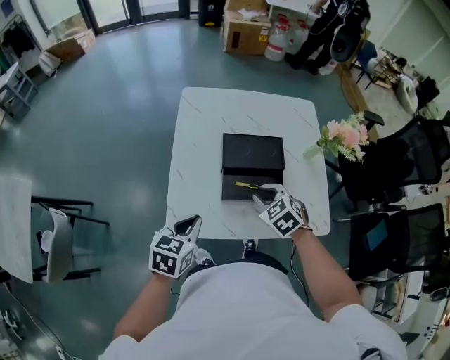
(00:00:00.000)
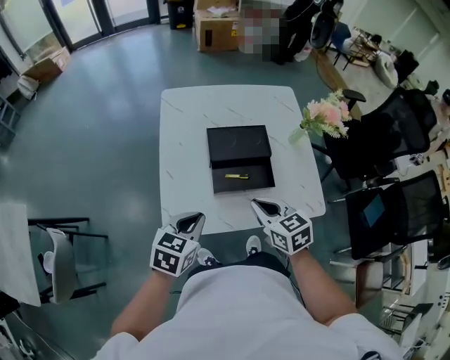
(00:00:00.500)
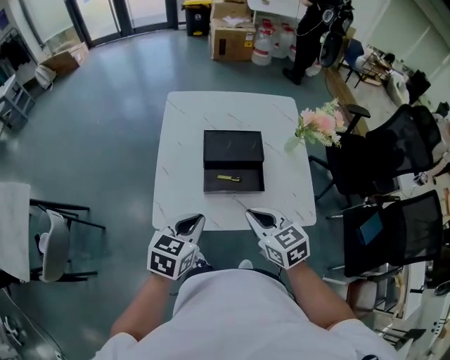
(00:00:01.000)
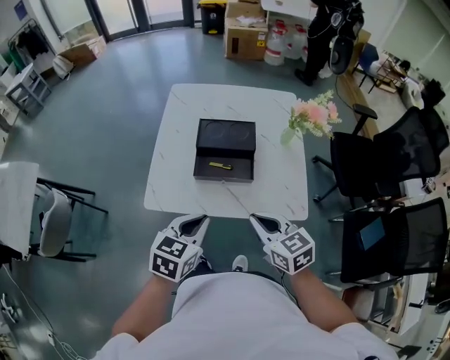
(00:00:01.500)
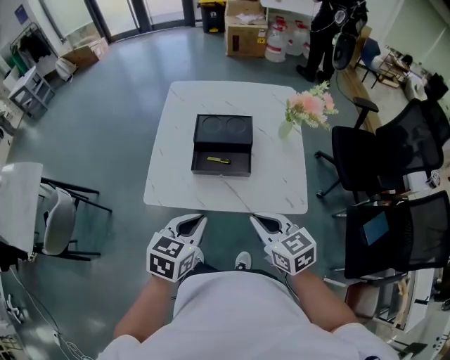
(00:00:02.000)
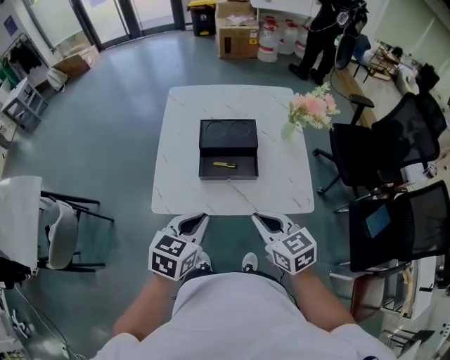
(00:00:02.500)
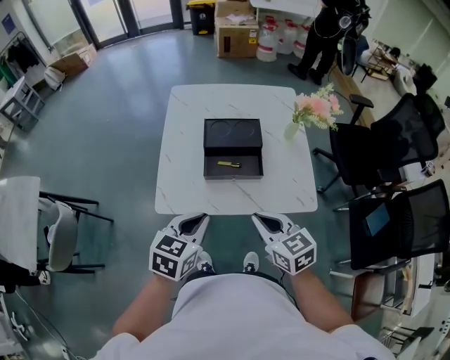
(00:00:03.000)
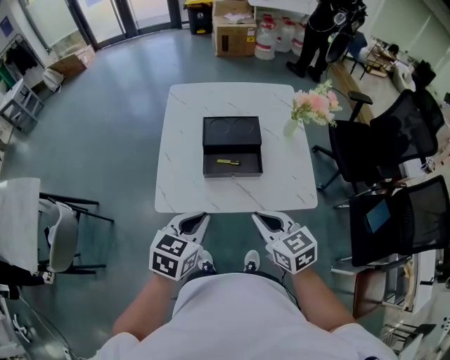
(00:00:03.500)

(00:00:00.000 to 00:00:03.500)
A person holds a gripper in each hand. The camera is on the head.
00:00:00.000 - 00:00:02.000: The right gripper shifts some 25 cm backward, to the right and upward, and changes its angle by roughly 40 degrees, while the left gripper shifts roughly 20 cm to the right and backward.
00:00:02.000 - 00:00:03.500: The grippers both shift to the left by some 5 cm.

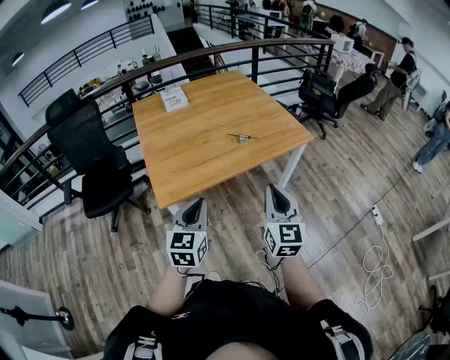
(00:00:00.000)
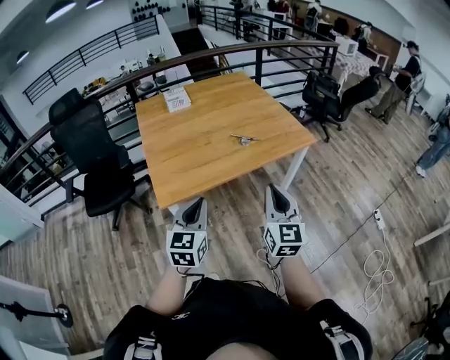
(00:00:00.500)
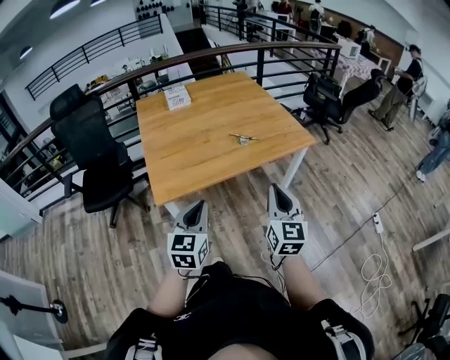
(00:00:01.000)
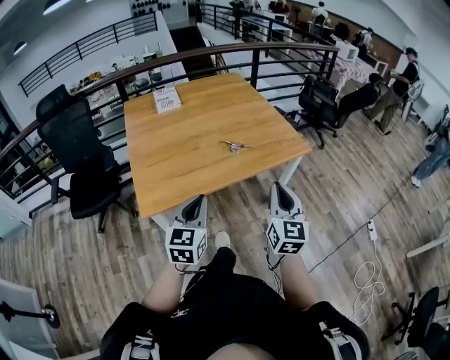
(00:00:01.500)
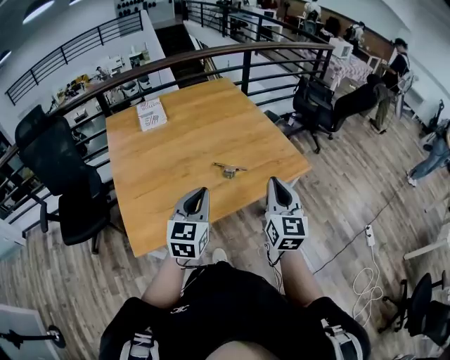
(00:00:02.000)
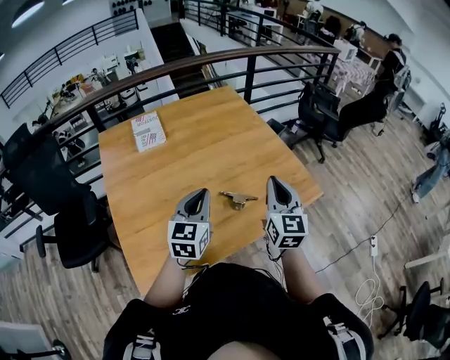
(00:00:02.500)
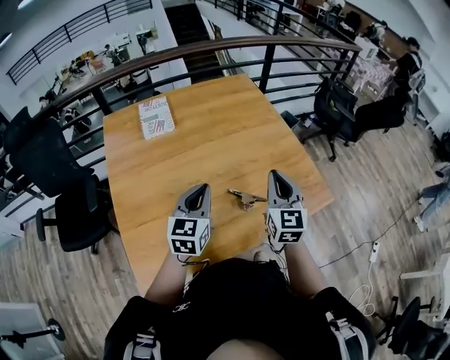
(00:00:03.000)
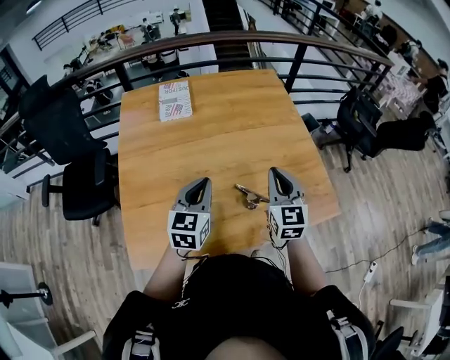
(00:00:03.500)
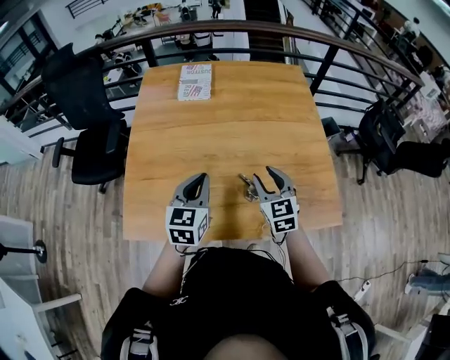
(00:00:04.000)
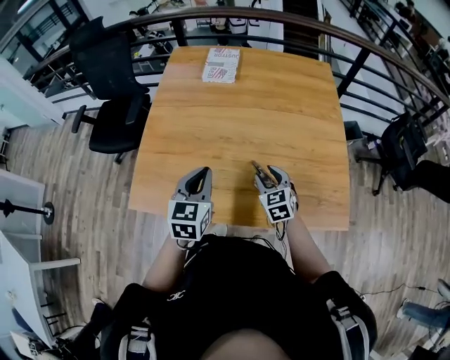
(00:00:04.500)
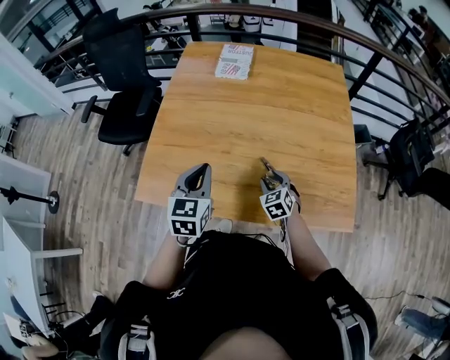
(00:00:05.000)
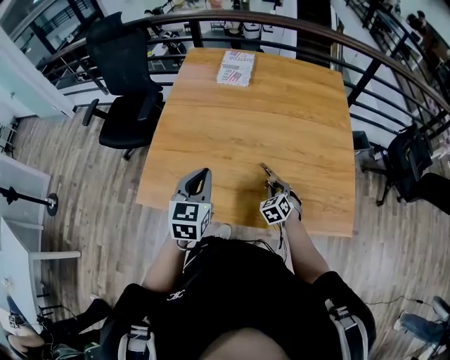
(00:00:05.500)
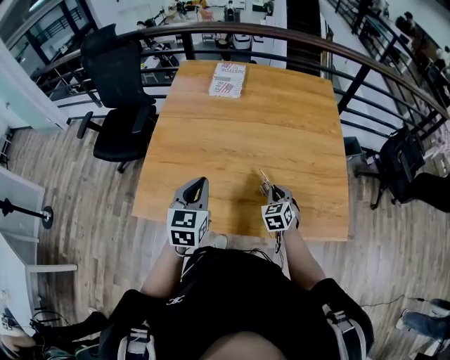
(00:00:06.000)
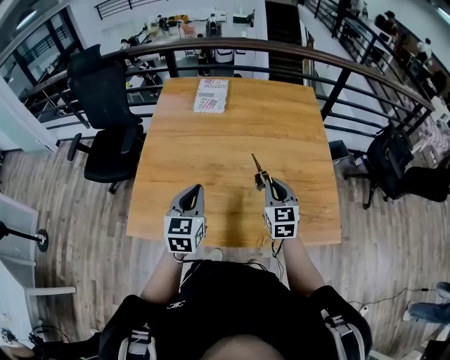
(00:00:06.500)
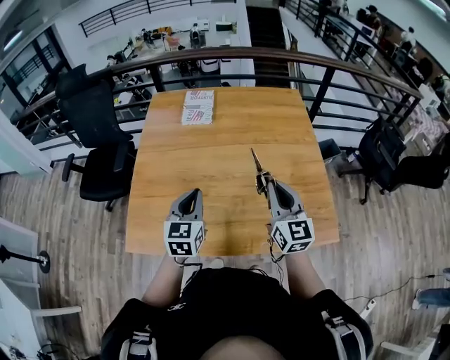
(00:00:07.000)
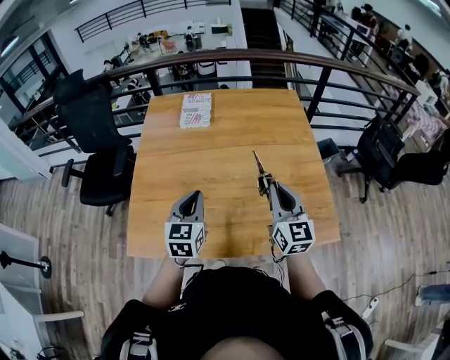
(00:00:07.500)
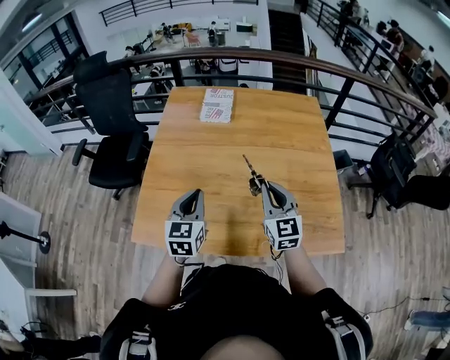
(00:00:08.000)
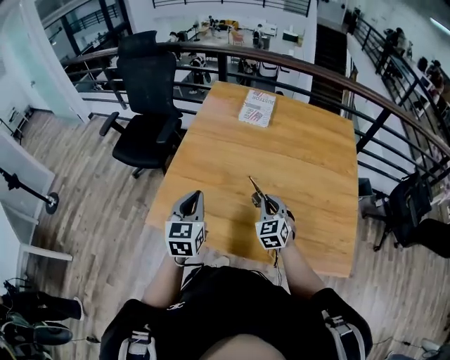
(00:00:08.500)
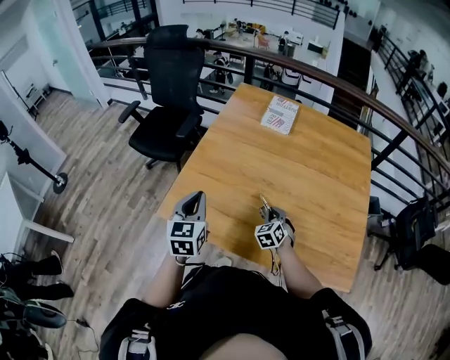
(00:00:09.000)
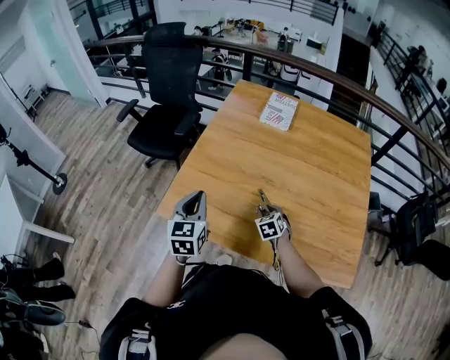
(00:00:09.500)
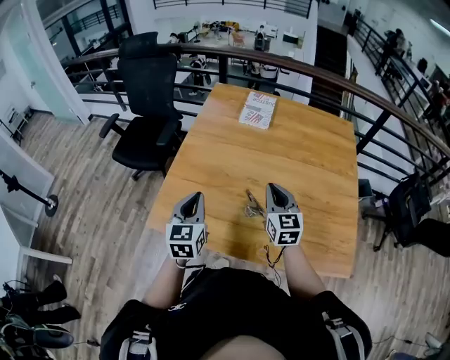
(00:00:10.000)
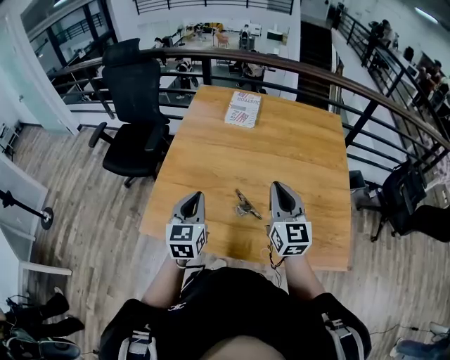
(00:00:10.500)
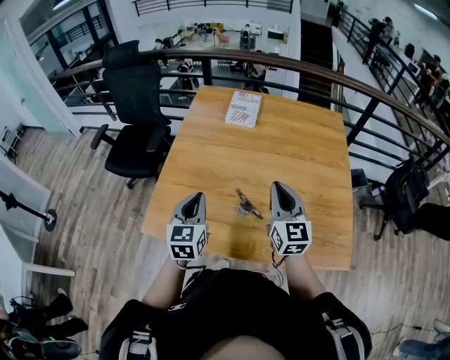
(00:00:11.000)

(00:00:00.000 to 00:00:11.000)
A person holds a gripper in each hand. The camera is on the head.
00:00:00.000 - 00:00:02.000: The grippers both shift forward by some 35 cm.
00:00:02.000 - 00:00:03.500: Both grippers move forward, about 30 cm. The right gripper turns by roughly 20 degrees.
00:00:03.500 - 00:00:05.500: The left gripper ends up roughly 10 cm from where it was, and turns by roughly 30 degrees; the right gripper heads downward, covering roughly 25 cm, tips its fingers downward by roughly 40 degrees, and opens, then closes once more.
00:00:05.500 - 00:00:07.500: The left gripper changes place by roughly 5 cm. The right gripper is displaced upward by about 30 cm, and points its fingers roughly 50 degrees further upward.
00:00:07.500 - 00:00:09.000: The right gripper is displaced downward and to the left by roughly 30 cm, and tips its fingers downward by some 40 degrees. The left gripper heads to the left, covering about 20 cm, and changes its angle by roughly 30 degrees.
00:00:09.000 - 00:00:11.000: The left gripper shifts some 10 cm to the right; the right gripper is displaced upward by approximately 25 cm, points its fingers some 40 degrees further upward, and opens and closes again.

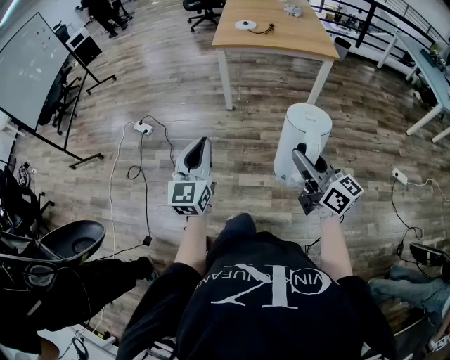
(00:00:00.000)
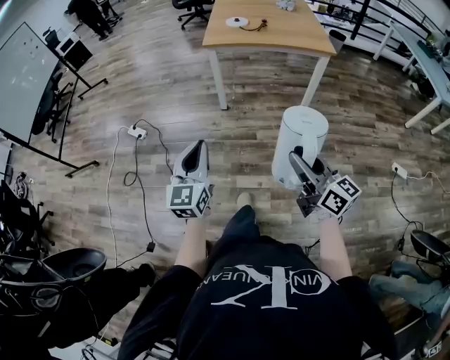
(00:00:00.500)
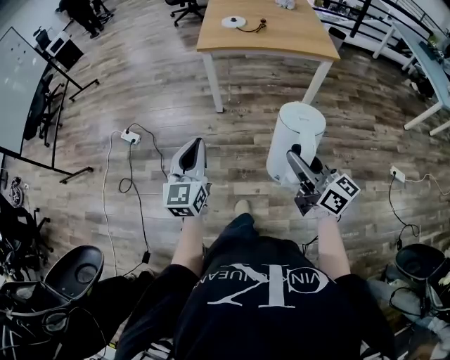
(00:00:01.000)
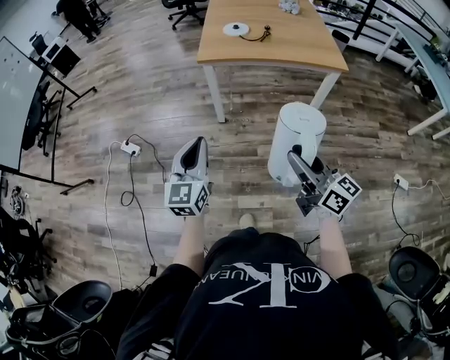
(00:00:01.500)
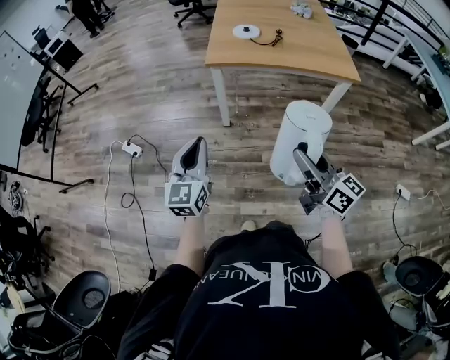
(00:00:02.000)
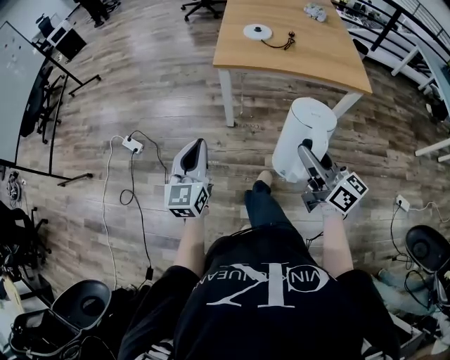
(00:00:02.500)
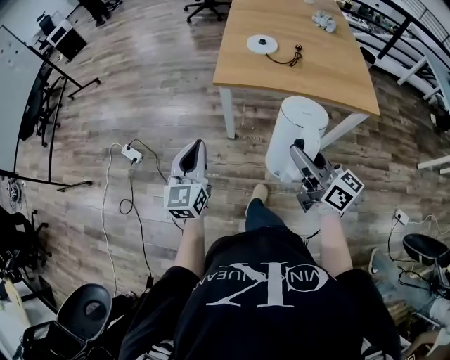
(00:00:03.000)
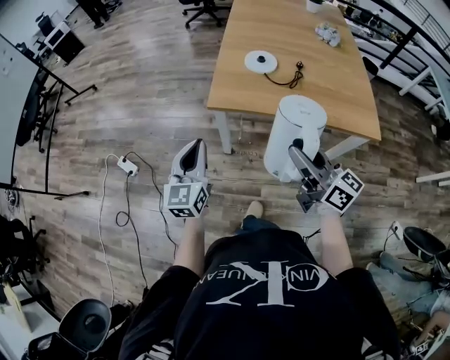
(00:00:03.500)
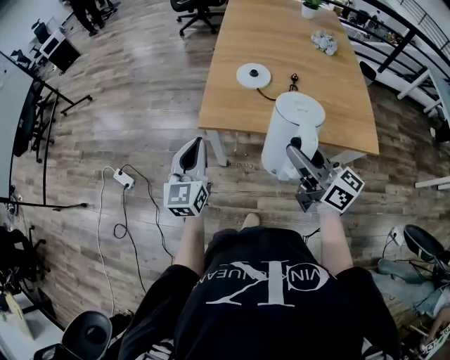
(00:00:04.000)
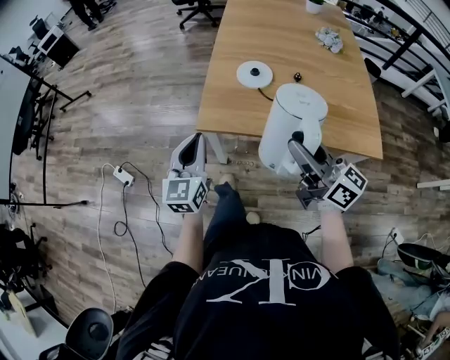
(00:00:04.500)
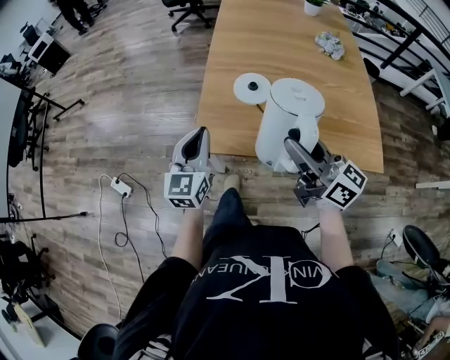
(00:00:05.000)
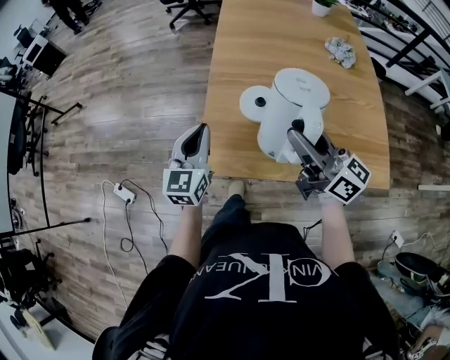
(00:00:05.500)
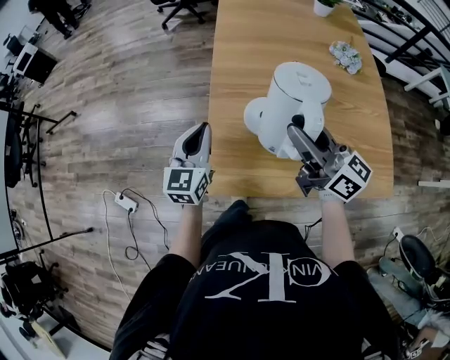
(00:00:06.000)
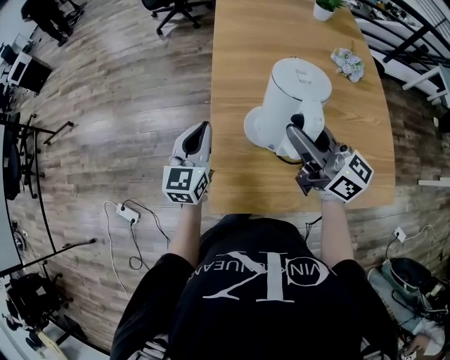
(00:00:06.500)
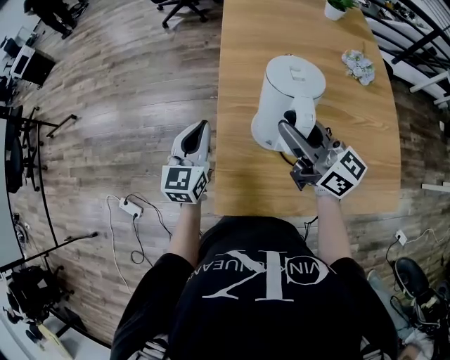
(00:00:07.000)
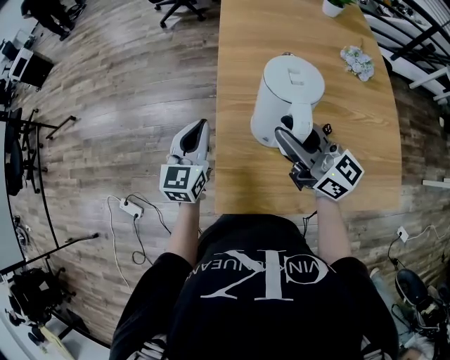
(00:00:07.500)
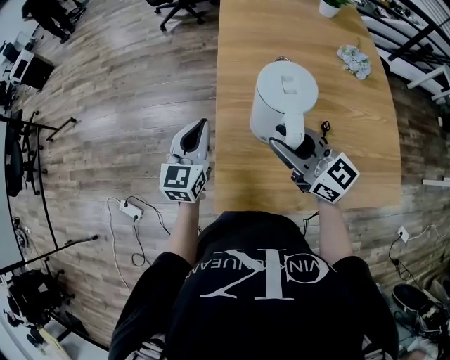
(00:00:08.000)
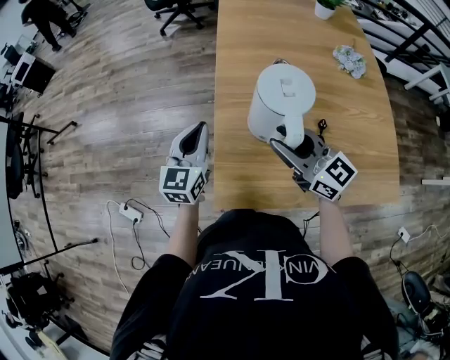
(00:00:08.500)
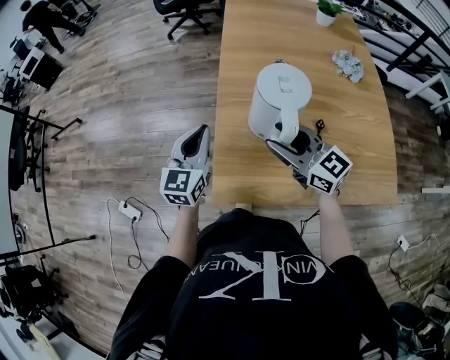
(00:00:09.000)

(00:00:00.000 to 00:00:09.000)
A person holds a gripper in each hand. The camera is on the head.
00:00:00.000 - 00:00:02.000: Both grippers move forward, roughly 30 cm.
00:00:02.000 - 00:00:04.500: The grippers both shift forward by some 40 cm.
00:00:04.500 - 00:00:07.000: The grippers both shift forward by about 35 cm.
00:00:07.000 - 00:00:09.000: The right gripper shifts approximately 10 cm backward and downward, and swivels approximately 20 degrees, while the left gripper shifts some 5 cm backward.

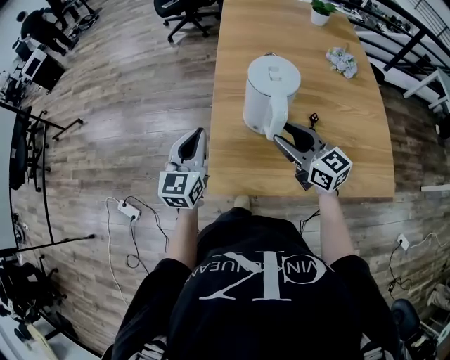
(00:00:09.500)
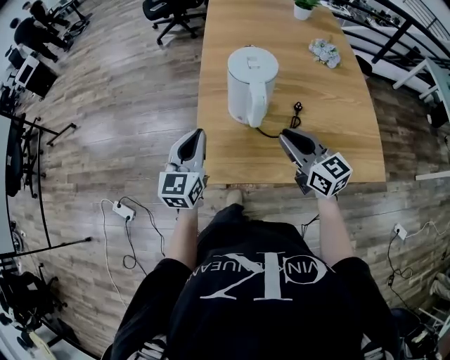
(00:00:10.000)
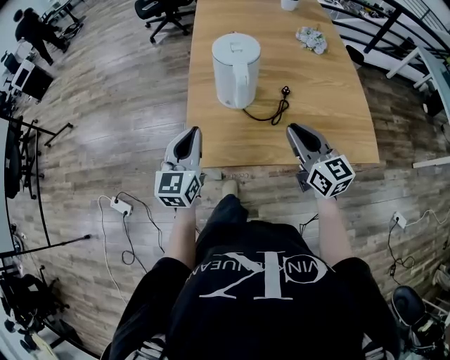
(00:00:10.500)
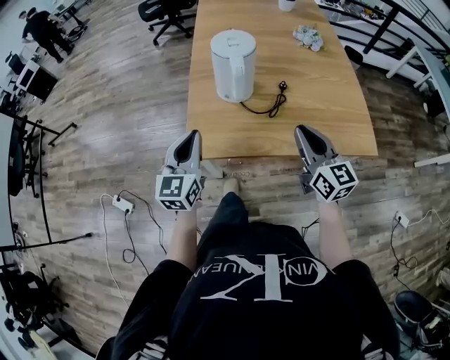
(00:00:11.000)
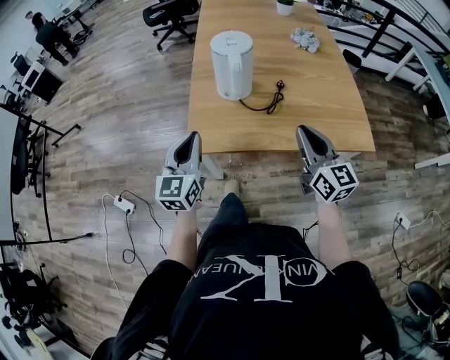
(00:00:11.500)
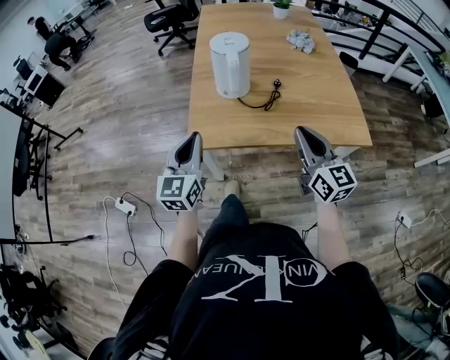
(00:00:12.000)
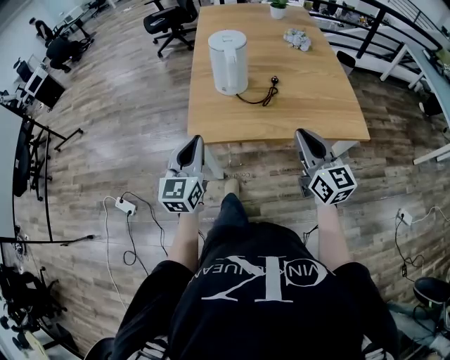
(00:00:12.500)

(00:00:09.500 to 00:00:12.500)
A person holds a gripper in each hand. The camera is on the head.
00:00:09.500 - 00:00:11.000: The left gripper is displaced backward by roughly 15 cm, while the right gripper moves backward and to the right, approximately 20 cm, changes its angle by roughly 20 degrees, and closes its fingers.
00:00:11.000 - 00:00:12.500: The two grippers go roughly 10 cm backward.
